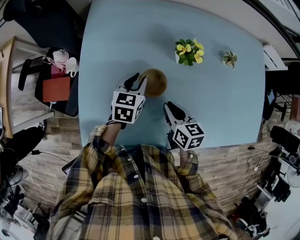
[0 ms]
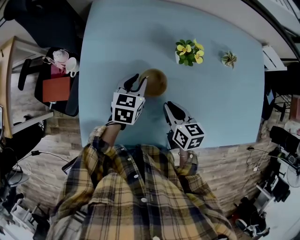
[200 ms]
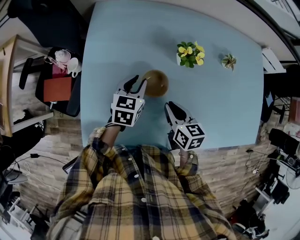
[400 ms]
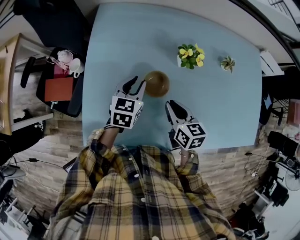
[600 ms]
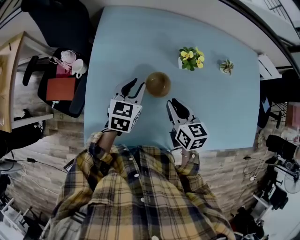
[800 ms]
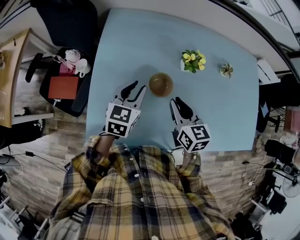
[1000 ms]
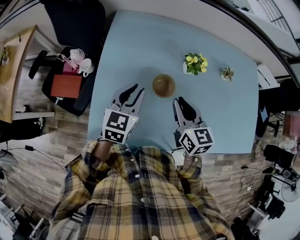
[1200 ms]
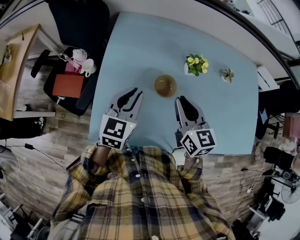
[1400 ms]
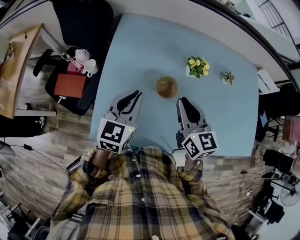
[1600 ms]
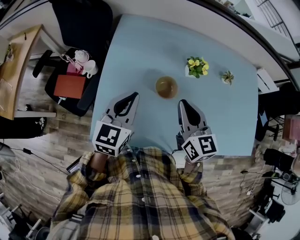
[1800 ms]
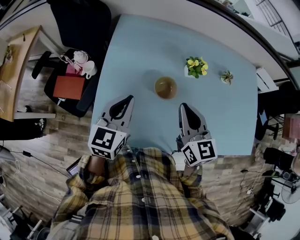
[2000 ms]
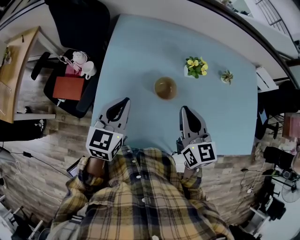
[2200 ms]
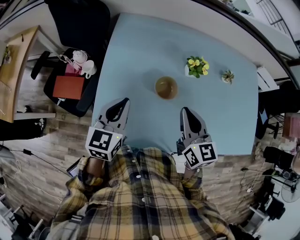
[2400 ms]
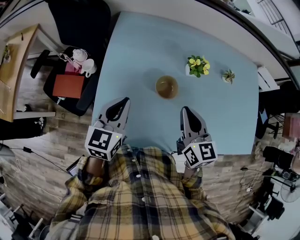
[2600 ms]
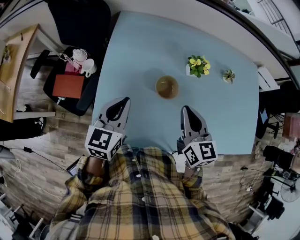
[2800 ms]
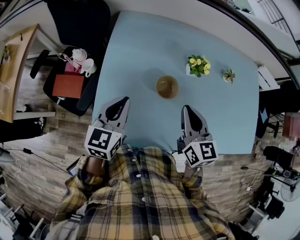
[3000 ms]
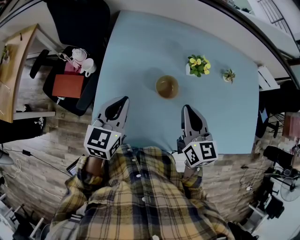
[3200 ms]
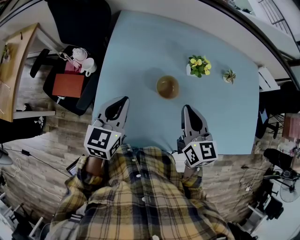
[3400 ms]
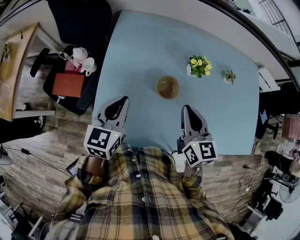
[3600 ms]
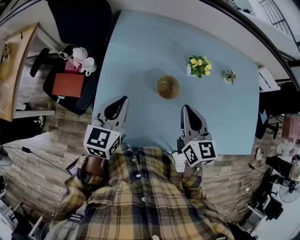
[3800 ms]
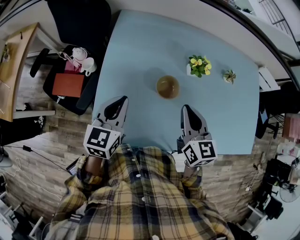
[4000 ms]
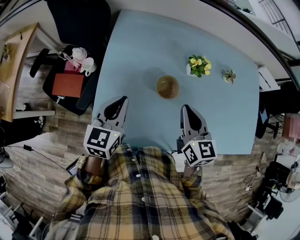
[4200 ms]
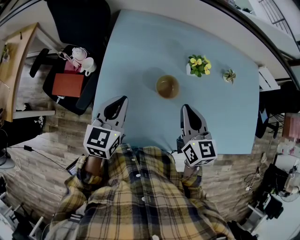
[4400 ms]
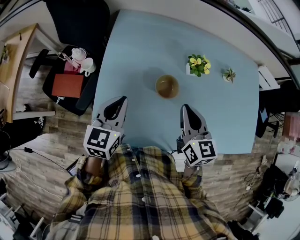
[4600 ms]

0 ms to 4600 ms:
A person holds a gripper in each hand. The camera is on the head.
0 ms to 1600 ms: The left gripper is displaced upward, backward and to the left by about 20 cm, and swivels some 20 degrees. The right gripper moves upward, approximately 15 cm, and turns by about 30 degrees.
1600 ms to 3000 ms: The grippers move only a little.
3000 ms to 4600 ms: Both grippers stay put.

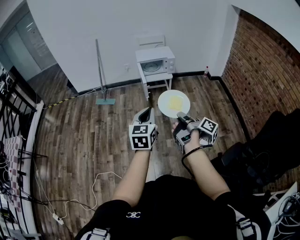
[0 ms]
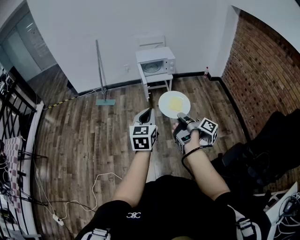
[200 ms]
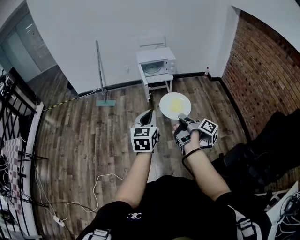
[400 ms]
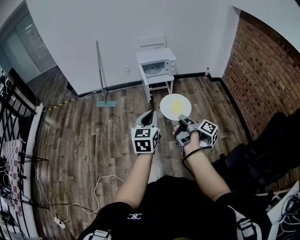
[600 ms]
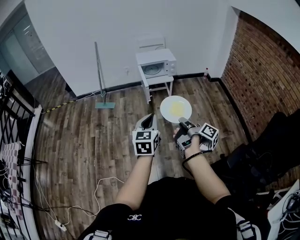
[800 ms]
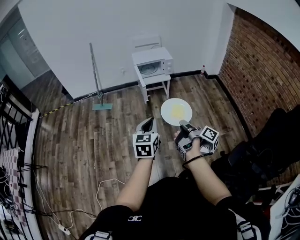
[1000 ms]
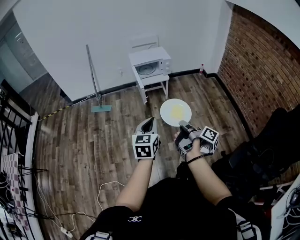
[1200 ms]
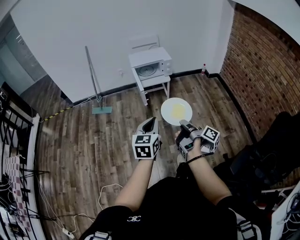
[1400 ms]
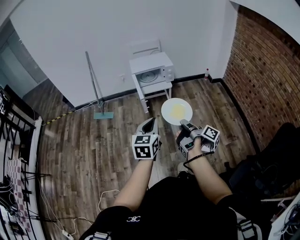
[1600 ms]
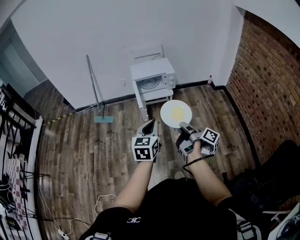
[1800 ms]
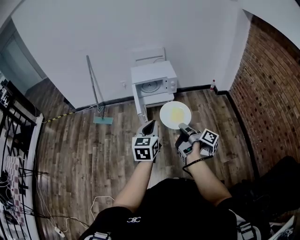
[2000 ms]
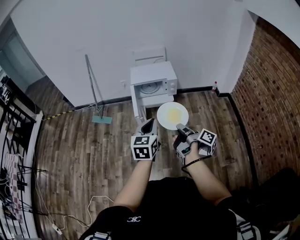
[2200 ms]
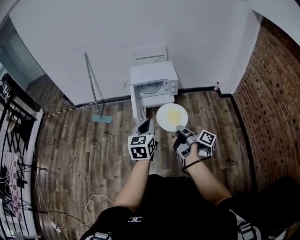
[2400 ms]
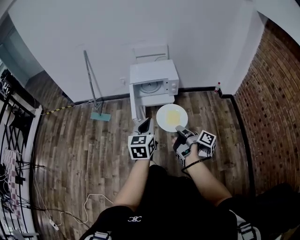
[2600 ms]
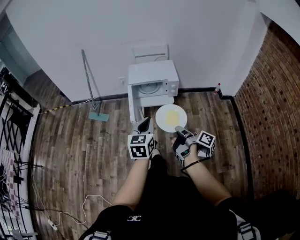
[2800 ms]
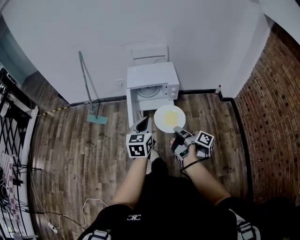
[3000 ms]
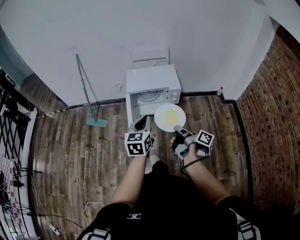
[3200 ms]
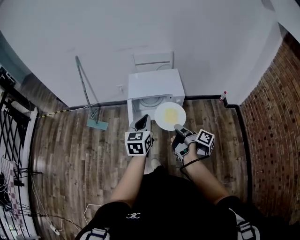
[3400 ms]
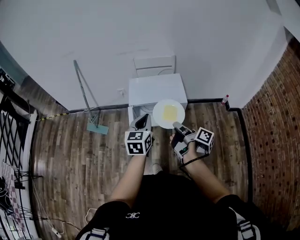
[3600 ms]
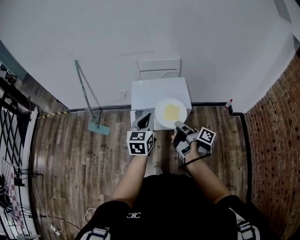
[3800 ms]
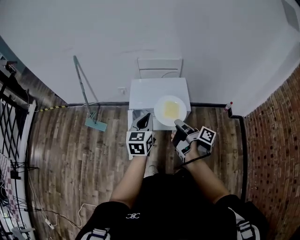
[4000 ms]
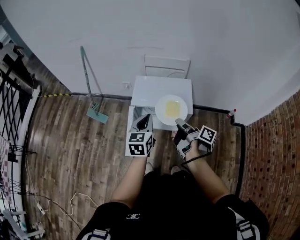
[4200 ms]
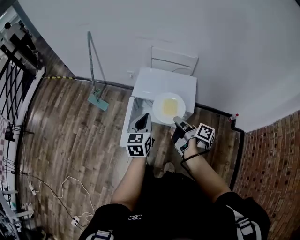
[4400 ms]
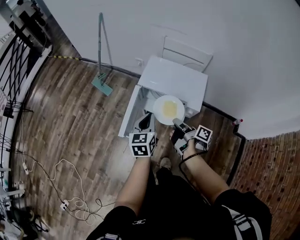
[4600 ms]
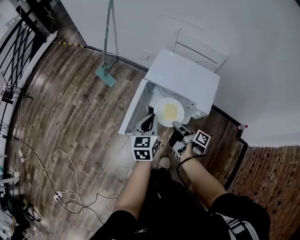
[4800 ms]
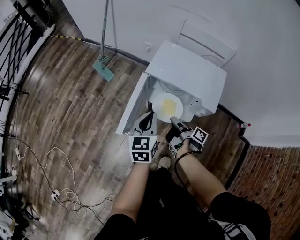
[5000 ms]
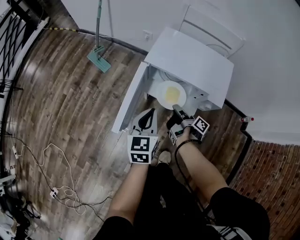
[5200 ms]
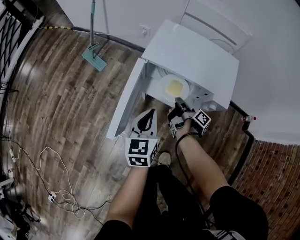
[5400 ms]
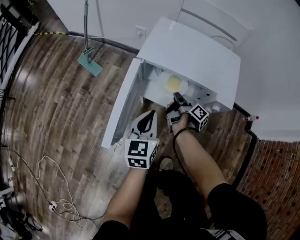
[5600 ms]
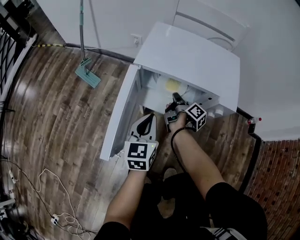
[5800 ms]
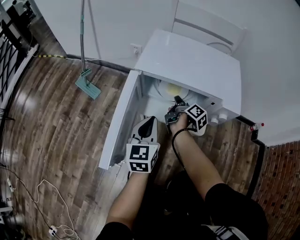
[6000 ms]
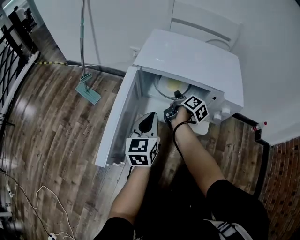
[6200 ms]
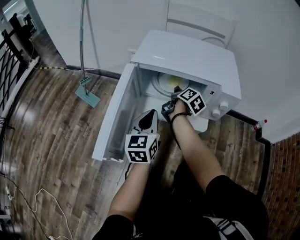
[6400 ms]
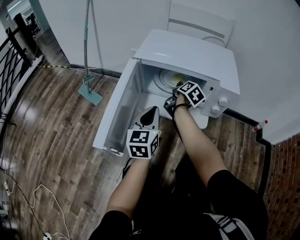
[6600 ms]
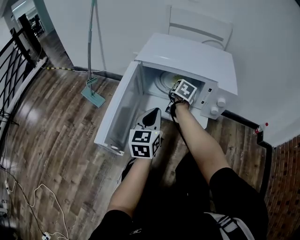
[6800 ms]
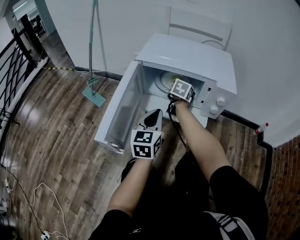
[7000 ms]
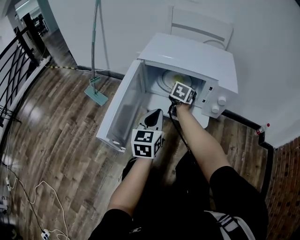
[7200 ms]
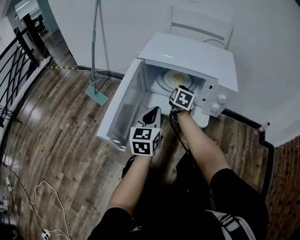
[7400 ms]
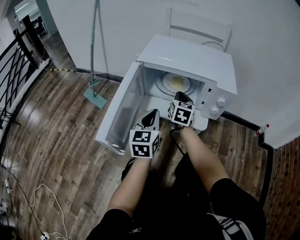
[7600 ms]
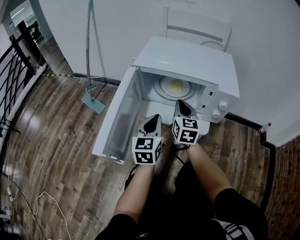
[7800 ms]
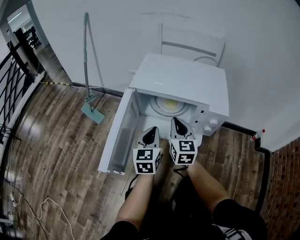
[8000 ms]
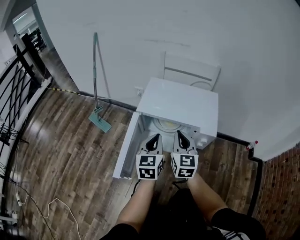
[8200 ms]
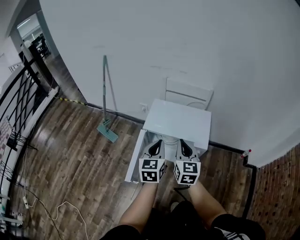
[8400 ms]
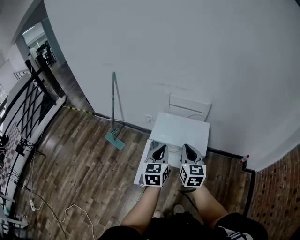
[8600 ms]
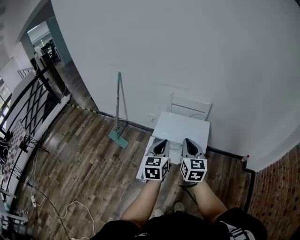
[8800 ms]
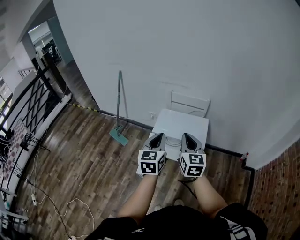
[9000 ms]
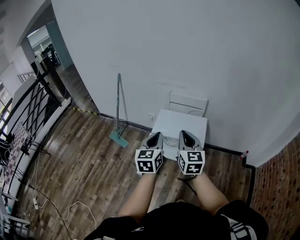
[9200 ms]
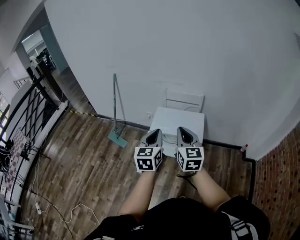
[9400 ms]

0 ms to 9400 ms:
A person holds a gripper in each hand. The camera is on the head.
0 ms to 1600 ms: The left gripper changes place by approximately 15 cm.
1600 ms to 3200 ms: The left gripper ends up roughly 40 cm from where it was.
3200 ms to 4800 ms: The left gripper shifts by some 20 cm, and changes its angle by roughly 30 degrees.
4800 ms to 6200 ms: The left gripper travels downward by approximately 25 cm.
7800 ms to 9400 ms: The left gripper goes some 50 cm upward.

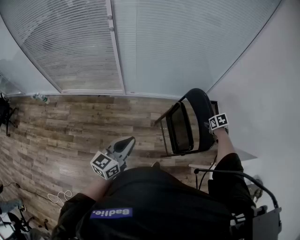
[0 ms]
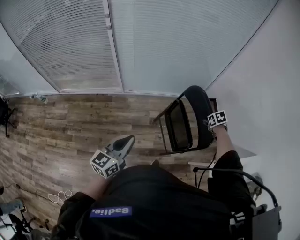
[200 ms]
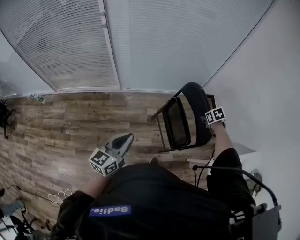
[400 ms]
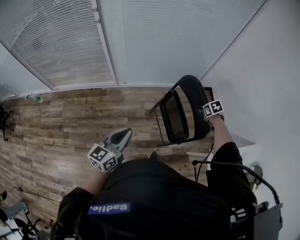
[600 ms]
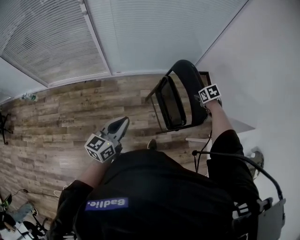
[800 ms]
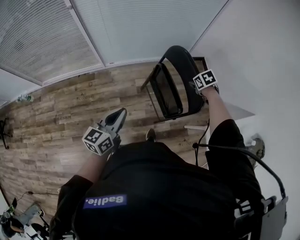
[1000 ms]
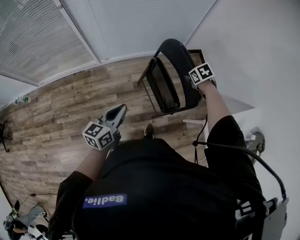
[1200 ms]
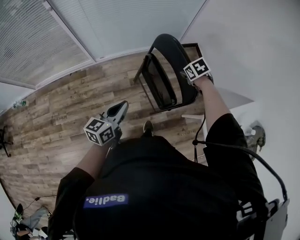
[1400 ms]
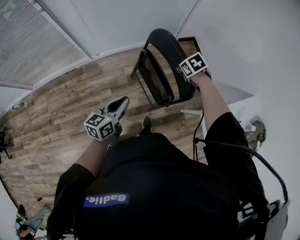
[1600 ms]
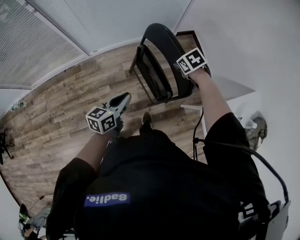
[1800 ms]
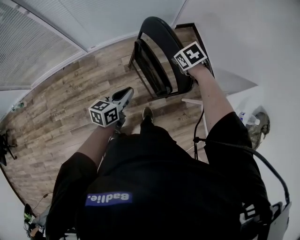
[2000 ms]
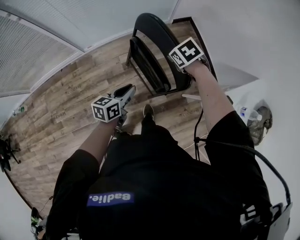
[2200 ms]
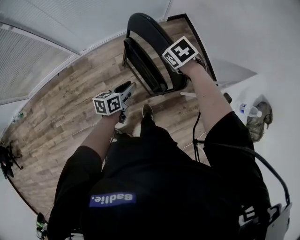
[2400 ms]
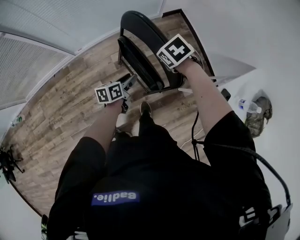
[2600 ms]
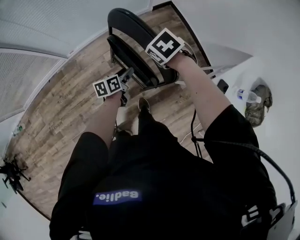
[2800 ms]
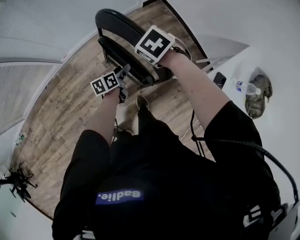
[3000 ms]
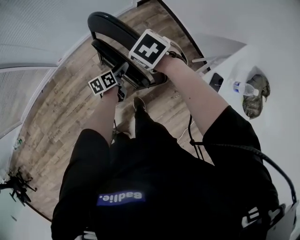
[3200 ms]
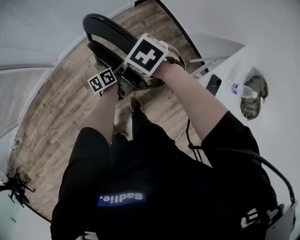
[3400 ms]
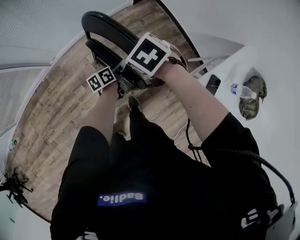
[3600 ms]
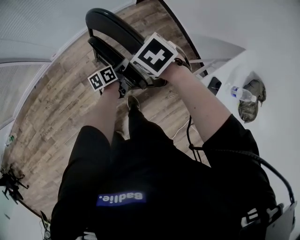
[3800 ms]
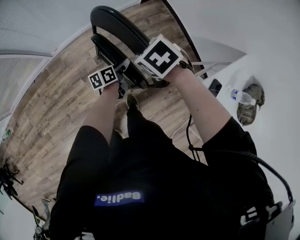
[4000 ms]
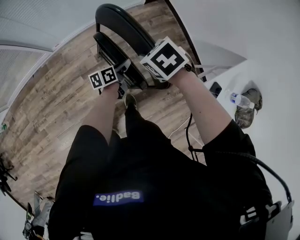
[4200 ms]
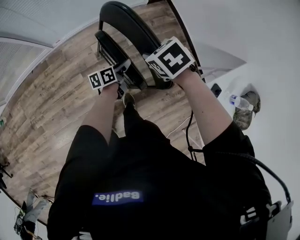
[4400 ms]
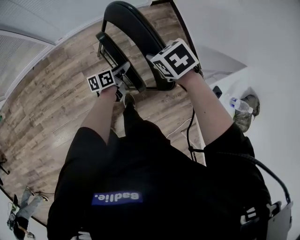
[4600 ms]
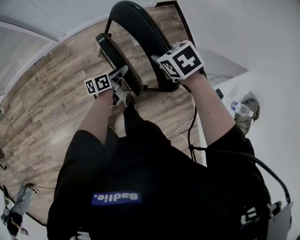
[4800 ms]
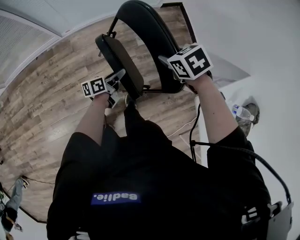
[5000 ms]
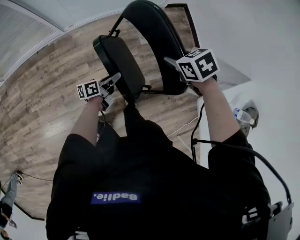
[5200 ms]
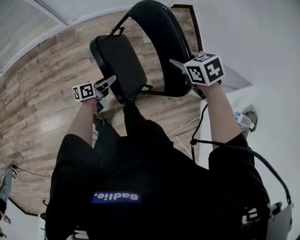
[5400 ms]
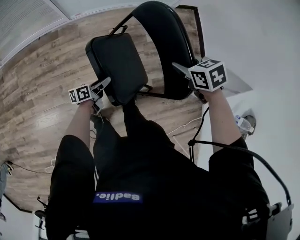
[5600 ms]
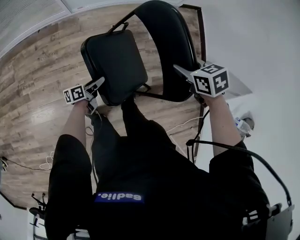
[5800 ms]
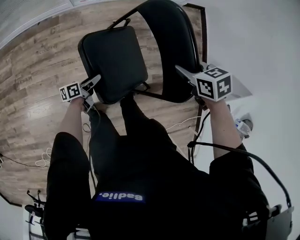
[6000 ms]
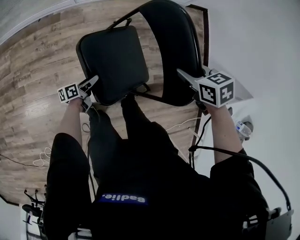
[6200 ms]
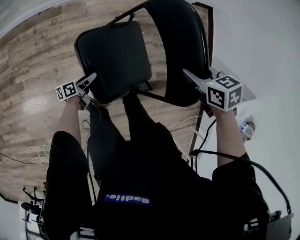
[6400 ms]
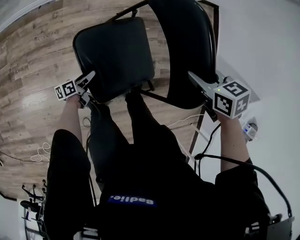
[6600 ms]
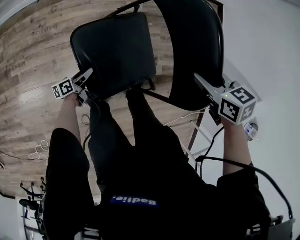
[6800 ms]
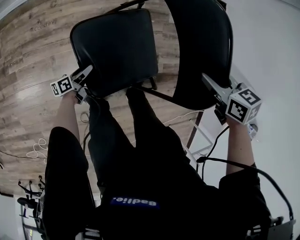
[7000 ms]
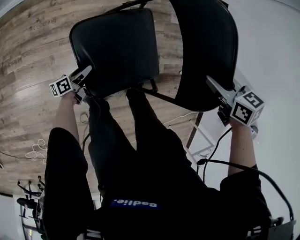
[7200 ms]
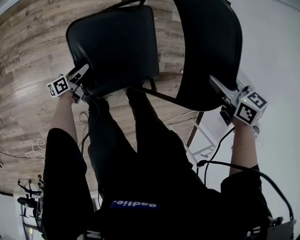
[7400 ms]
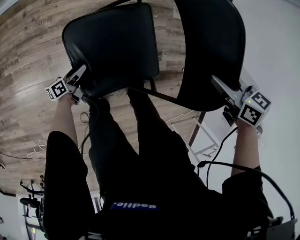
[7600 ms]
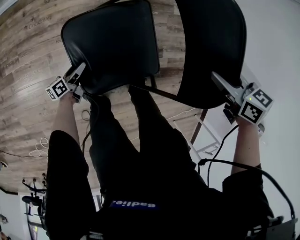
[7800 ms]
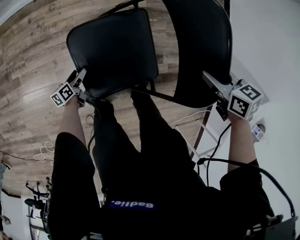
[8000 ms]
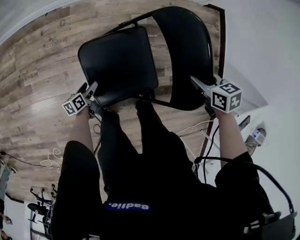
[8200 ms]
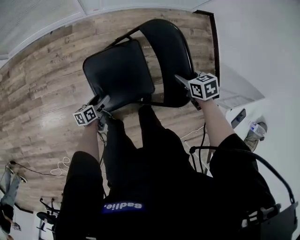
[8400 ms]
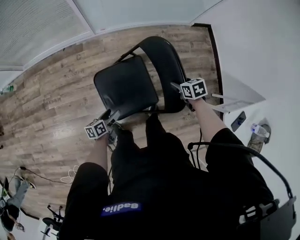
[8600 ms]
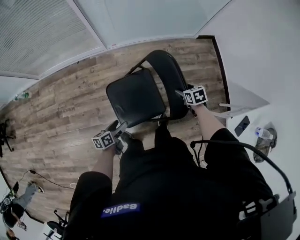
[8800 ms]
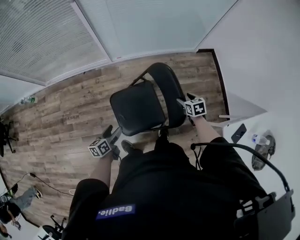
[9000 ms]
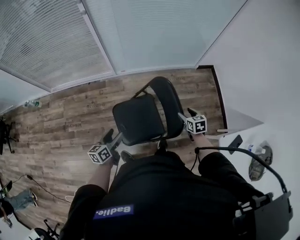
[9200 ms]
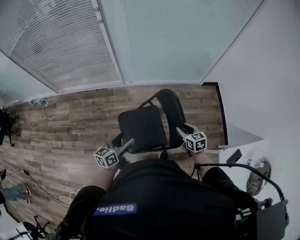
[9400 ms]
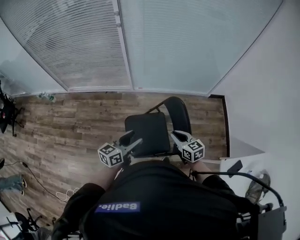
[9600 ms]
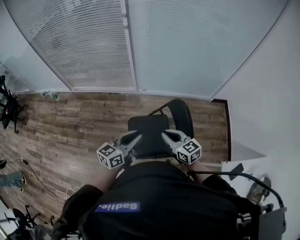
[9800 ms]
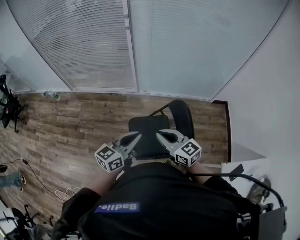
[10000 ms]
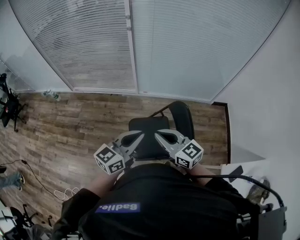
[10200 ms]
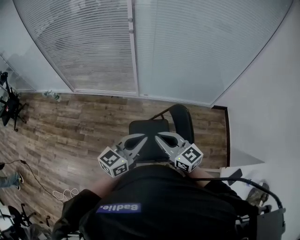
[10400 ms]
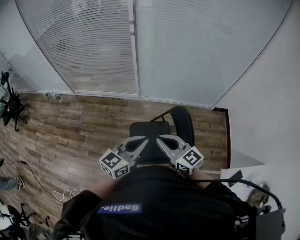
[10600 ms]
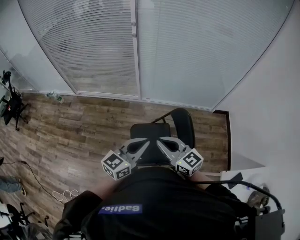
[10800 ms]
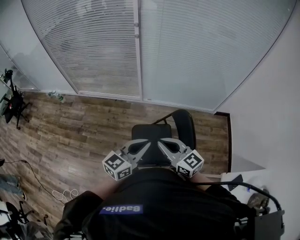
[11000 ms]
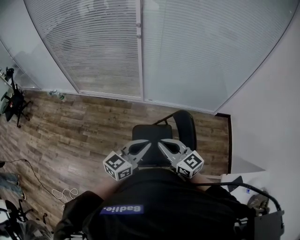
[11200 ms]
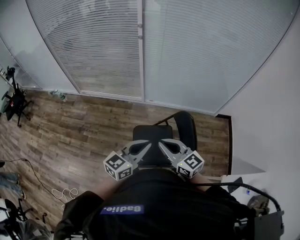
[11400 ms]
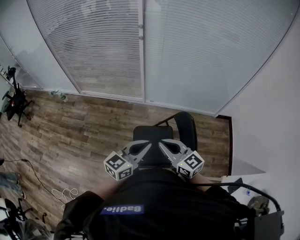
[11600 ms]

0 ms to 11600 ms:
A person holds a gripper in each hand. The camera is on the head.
0 ms to 1400 ms: The left gripper is displaced to the right, downward and forward by roughly 15 cm.
1400 ms to 2800 ms: The left gripper heads downward, to the right and forward, covering roughly 30 cm, swivels roughly 30 degrees, and opens up.
4400 ms to 5800 ms: The right gripper heads to the left and downward, covering roughly 10 cm. The left gripper shifts about 30 cm to the left.
5800 ms to 7200 ms: The left gripper moves downward and to the left, some 30 cm. The right gripper moves to the left and downward, approximately 15 cm.
7200 ms to 8800 ms: The right gripper is displaced to the right by some 5 cm, and opens; the left gripper heads upward, covering some 35 cm, and rotates some 20 degrees.
8800 ms to 10200 ms: The left gripper heads upward, covering roughly 40 cm, swivels approximately 50 degrees, and closes up. Meanwhile the right gripper moves upward and to the left, some 50 cm, angles its fingers upward, by approximately 50 degrees, and closes its fingers.
10200 ms to 11600 ms: The grippers move only a little.
